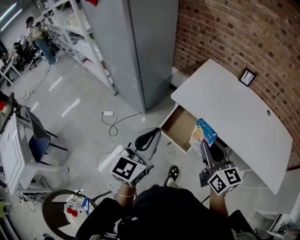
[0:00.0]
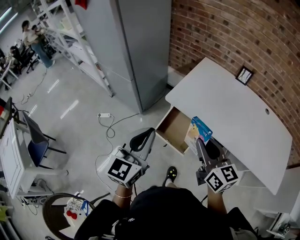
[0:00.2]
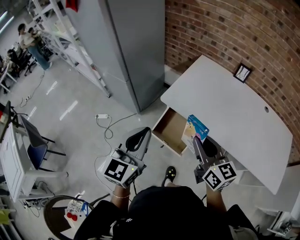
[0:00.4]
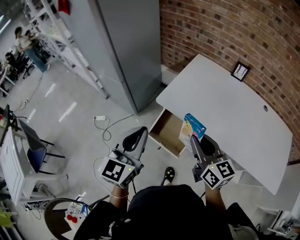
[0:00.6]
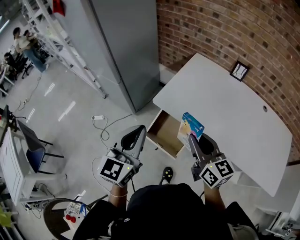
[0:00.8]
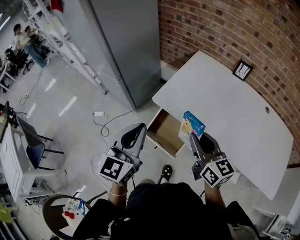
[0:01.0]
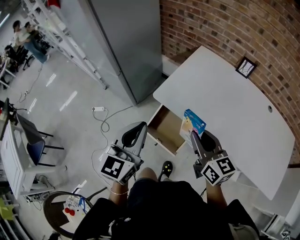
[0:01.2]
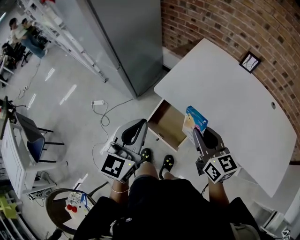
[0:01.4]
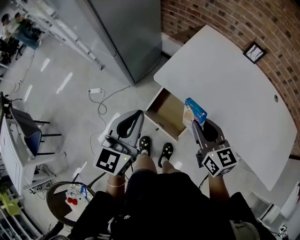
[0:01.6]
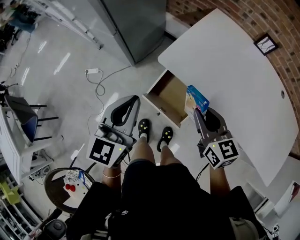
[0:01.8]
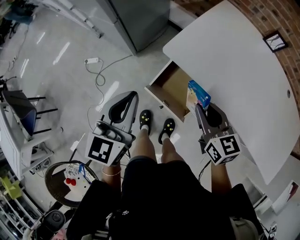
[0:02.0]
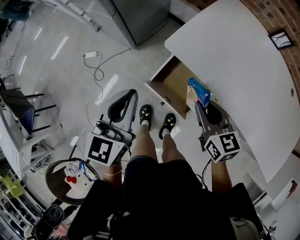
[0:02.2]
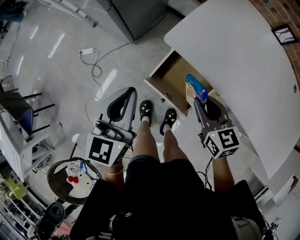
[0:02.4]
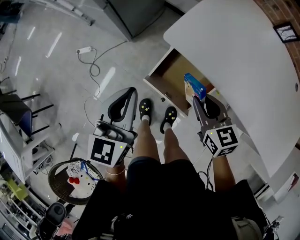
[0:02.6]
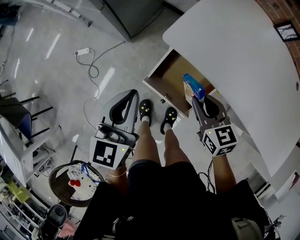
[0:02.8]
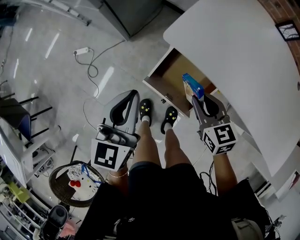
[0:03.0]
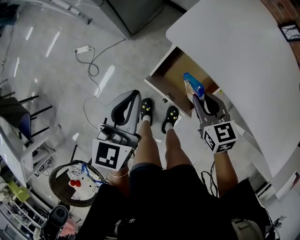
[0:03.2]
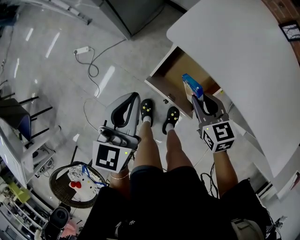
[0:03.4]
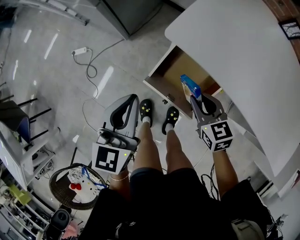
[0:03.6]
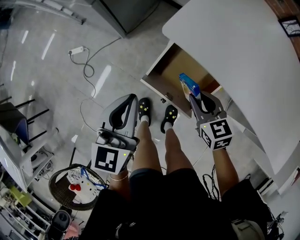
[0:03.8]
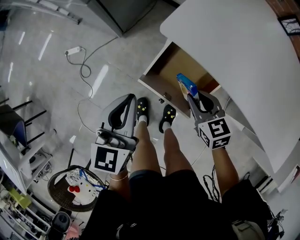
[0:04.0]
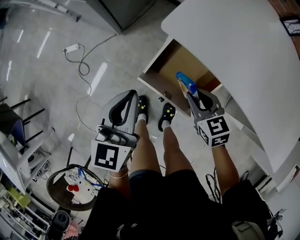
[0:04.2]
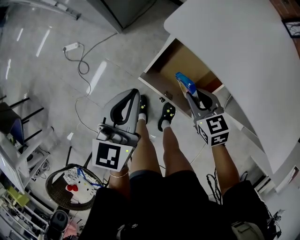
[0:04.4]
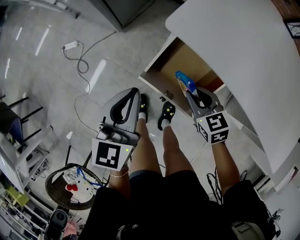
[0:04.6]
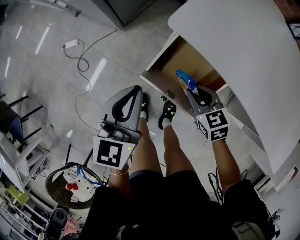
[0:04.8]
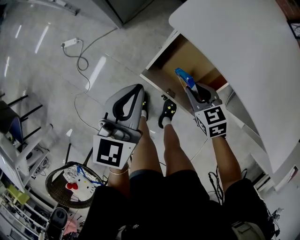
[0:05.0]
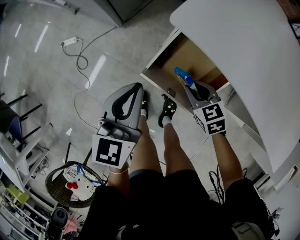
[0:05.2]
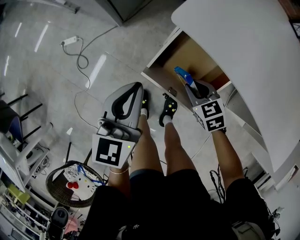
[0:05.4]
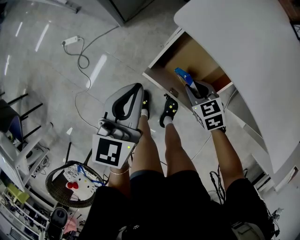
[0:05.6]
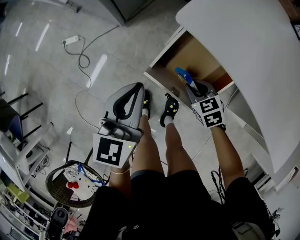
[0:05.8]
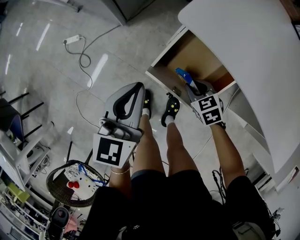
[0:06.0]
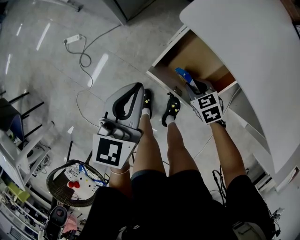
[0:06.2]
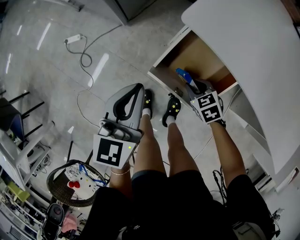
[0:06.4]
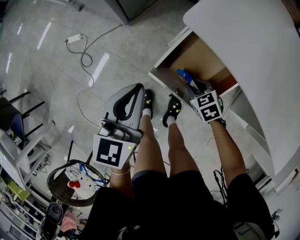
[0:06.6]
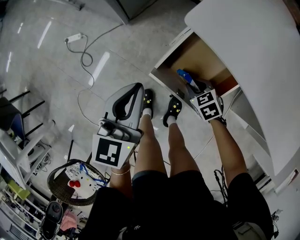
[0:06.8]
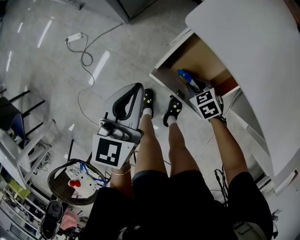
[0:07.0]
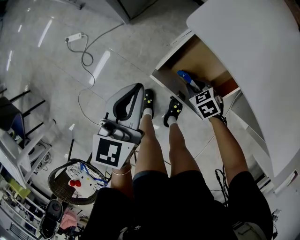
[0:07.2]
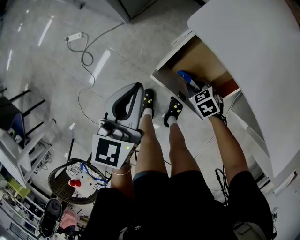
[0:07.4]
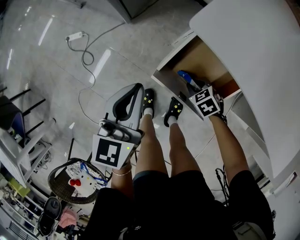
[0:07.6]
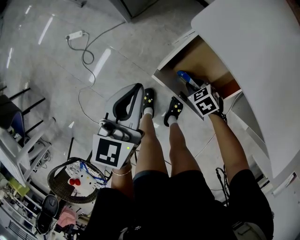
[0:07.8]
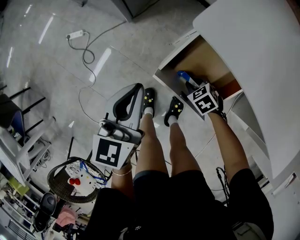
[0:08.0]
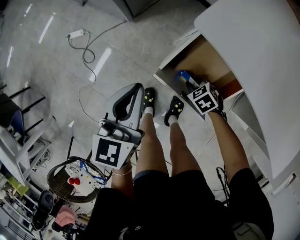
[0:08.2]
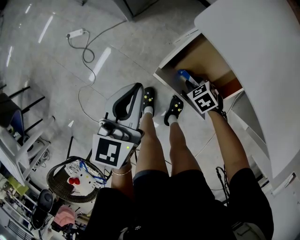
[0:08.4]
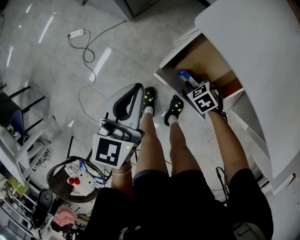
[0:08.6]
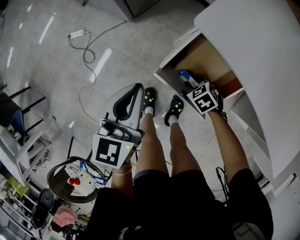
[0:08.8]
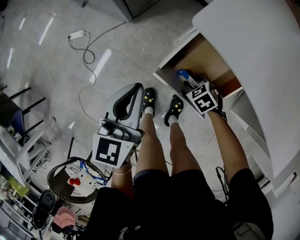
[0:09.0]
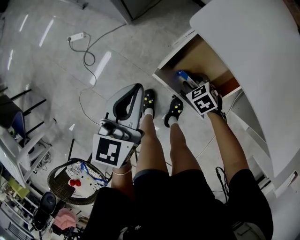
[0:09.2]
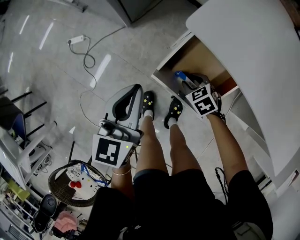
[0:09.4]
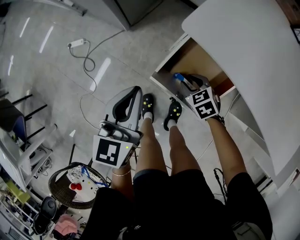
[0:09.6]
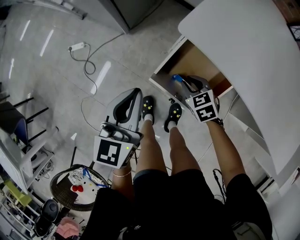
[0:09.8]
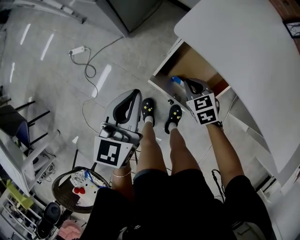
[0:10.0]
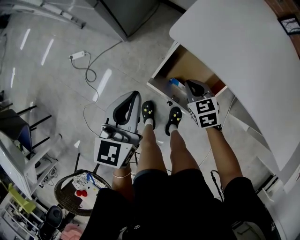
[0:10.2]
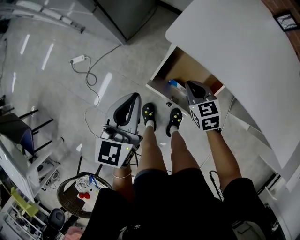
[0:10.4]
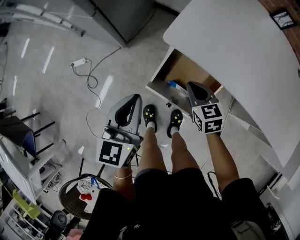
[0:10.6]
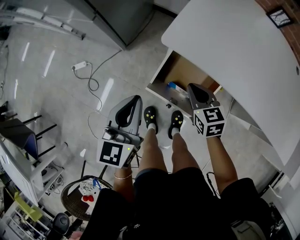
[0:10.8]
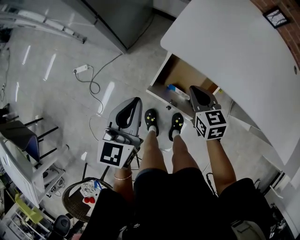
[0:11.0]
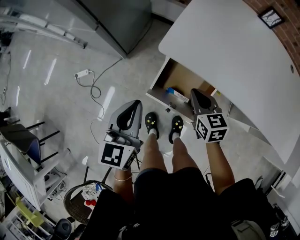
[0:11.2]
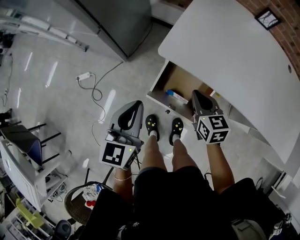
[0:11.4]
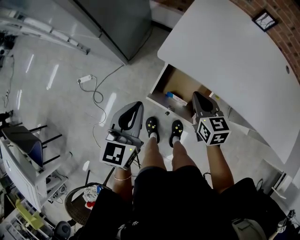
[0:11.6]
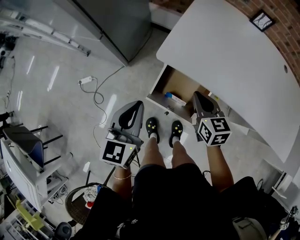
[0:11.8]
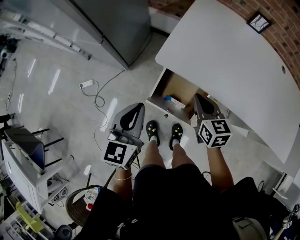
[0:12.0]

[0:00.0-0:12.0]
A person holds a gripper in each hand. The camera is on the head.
0:00.0 to 0:01.6: The grippers both shift forward and downward by approximately 15 cm.
0:01.6 to 0:03.0: Both grippers travel together downward, some 15 cm. The right gripper rotates roughly 20 degrees.
0:03.0 to 0:04.4: Both grippers move downward, some 10 cm.
0:04.4 to 0:06.0: The right gripper heads downward, covering about 10 cm.
0:06.0 to 0:07.6: The right gripper heads downward, covering about 5 cm.
0:07.6 to 0:09.0: There are only small adjustments of the grippers.
0:09.0 to 0:10.4: The left gripper moves some 5 cm; the right gripper shifts approximately 15 cm upward, turns by approximately 30 degrees, and closes its fingers.
0:10.4 to 0:12.0: The left gripper travels upward by about 10 cm; the right gripper is displaced upward by about 15 cm, and turns by approximately 30 degrees.

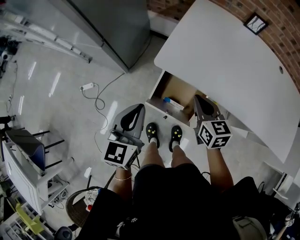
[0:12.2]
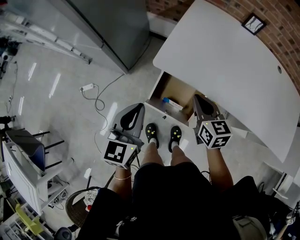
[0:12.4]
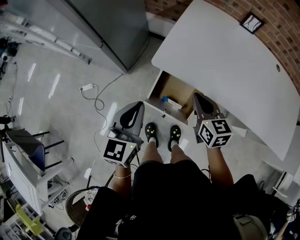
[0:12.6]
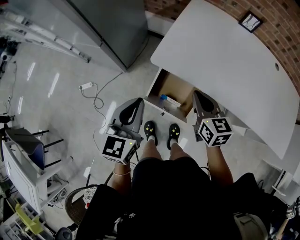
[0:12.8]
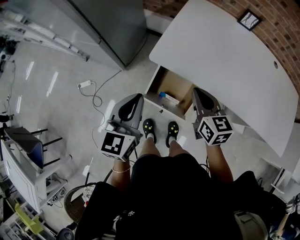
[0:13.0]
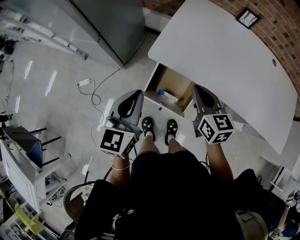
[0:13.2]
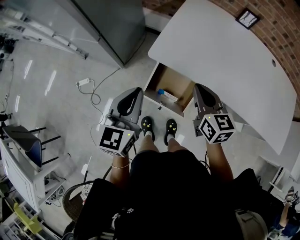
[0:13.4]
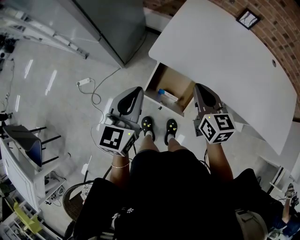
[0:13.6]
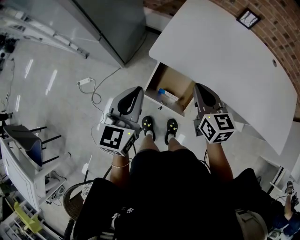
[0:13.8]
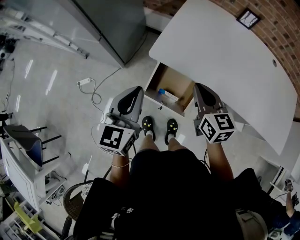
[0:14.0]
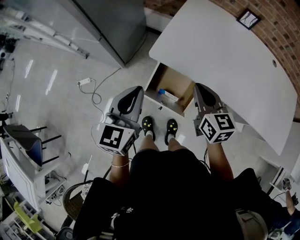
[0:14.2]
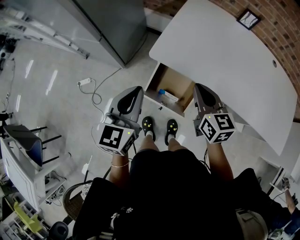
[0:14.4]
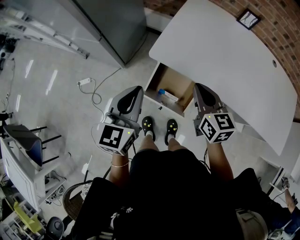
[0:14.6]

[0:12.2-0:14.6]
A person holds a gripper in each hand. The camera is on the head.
0:12.2 to 0:13.4: The right gripper travels upward by some 5 cm.
0:13.4 to 0:14.6: Both grippers stay put.

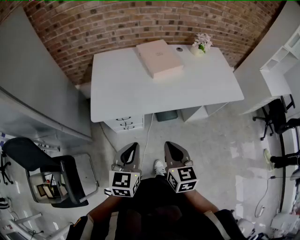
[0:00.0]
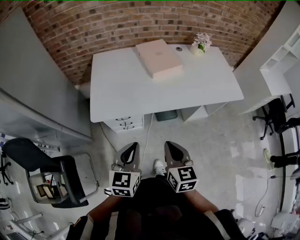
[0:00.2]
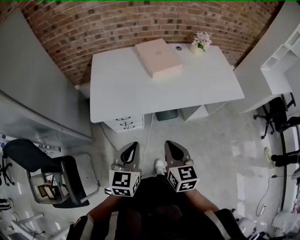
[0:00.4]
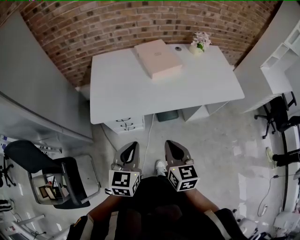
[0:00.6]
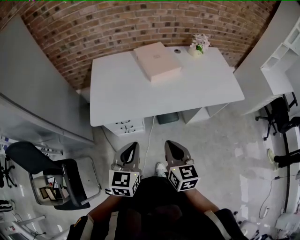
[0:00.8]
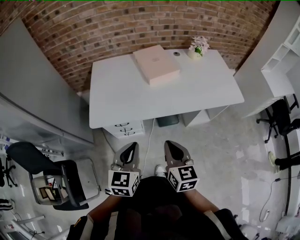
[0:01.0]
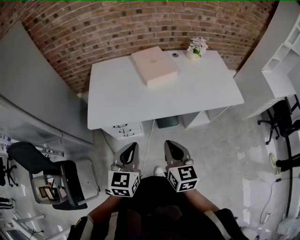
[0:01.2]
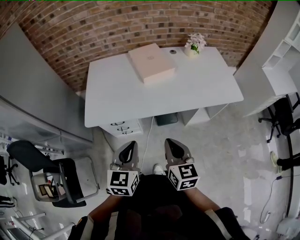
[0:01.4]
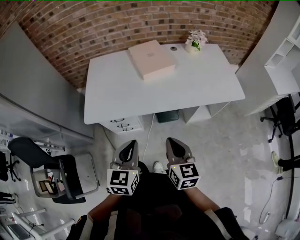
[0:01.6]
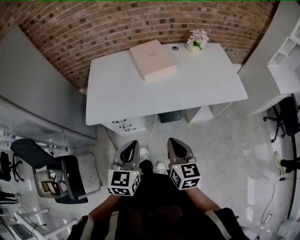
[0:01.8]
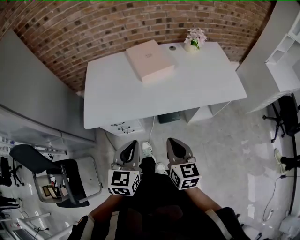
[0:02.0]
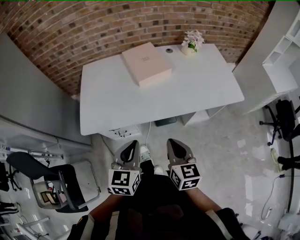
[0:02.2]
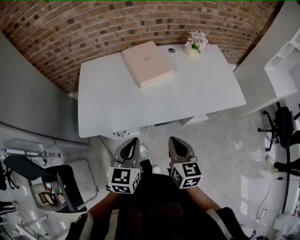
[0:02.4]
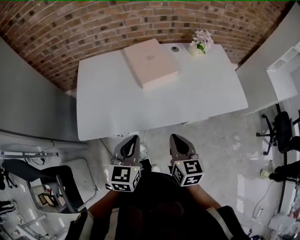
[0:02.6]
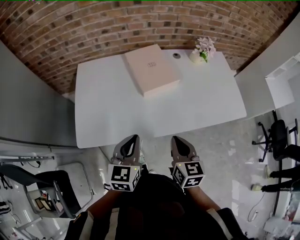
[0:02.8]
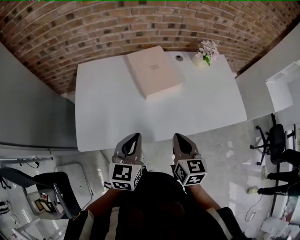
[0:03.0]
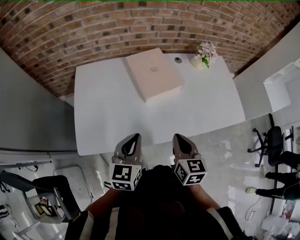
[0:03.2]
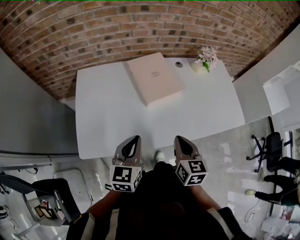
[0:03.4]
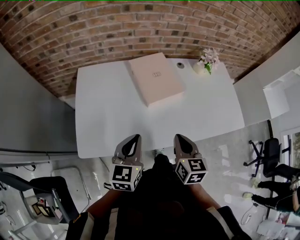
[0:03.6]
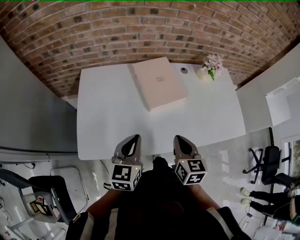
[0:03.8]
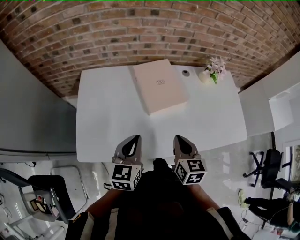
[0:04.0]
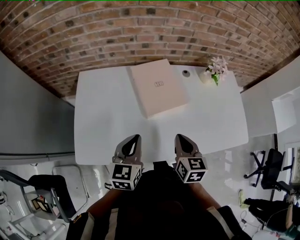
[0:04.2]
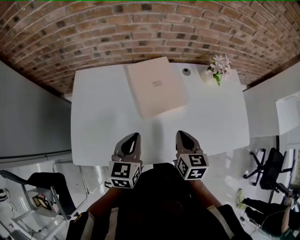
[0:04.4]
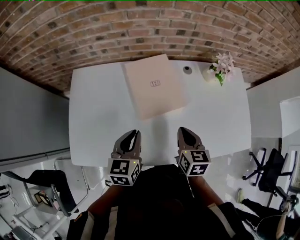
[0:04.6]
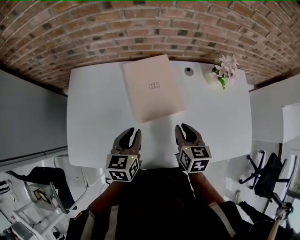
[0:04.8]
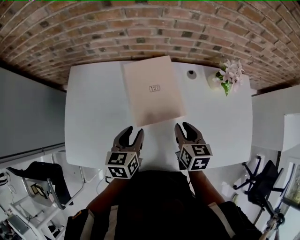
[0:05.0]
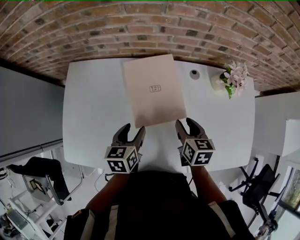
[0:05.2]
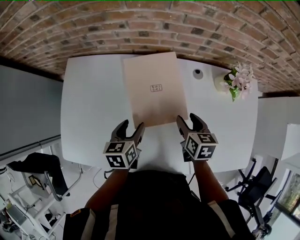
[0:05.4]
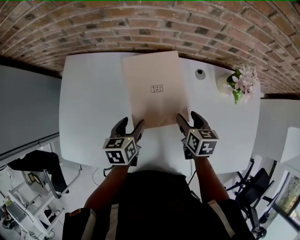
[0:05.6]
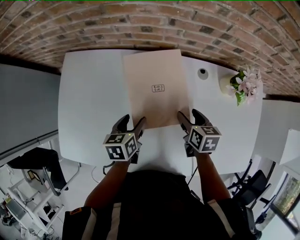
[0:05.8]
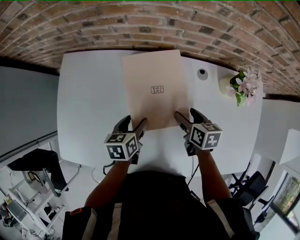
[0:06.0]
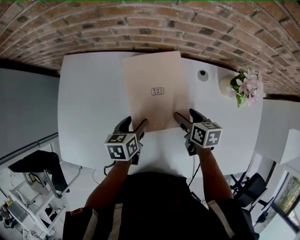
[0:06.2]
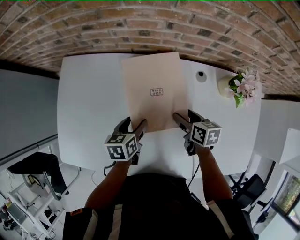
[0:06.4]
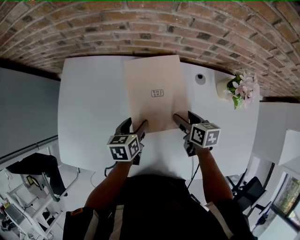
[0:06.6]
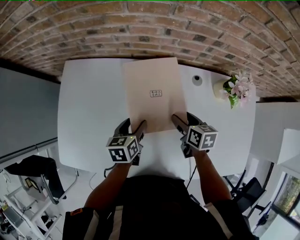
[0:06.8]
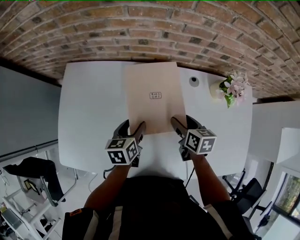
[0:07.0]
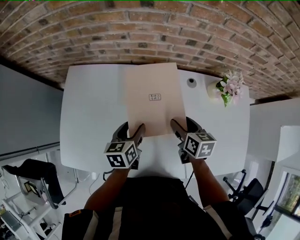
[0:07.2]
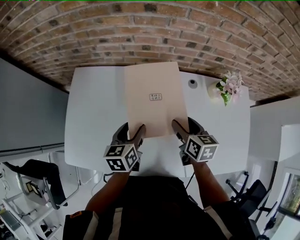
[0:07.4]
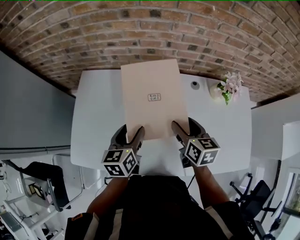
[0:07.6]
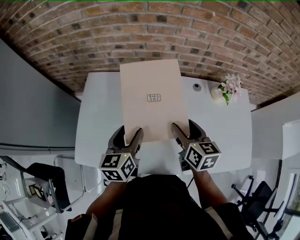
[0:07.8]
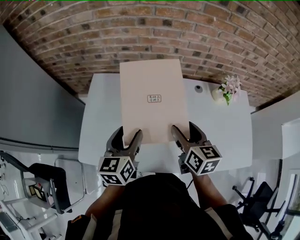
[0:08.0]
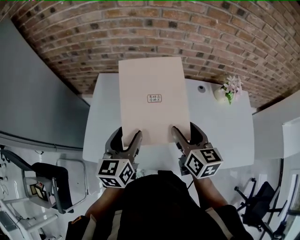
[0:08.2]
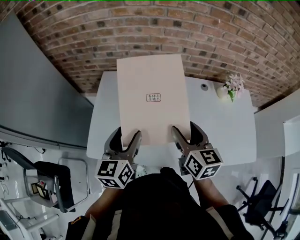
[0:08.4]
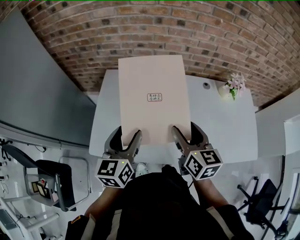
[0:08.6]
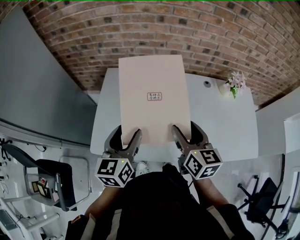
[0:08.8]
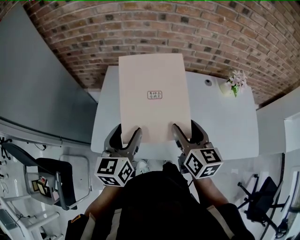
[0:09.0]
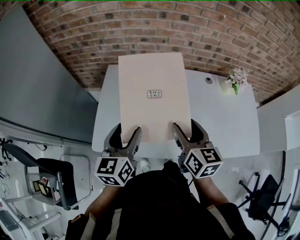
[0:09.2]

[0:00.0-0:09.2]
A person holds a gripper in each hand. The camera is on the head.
0:00.0 to 0:01.6: The grippers both shift to the right by roughly 10 cm.
0:01.6 to 0:03.0: The grippers both shift forward by approximately 20 cm.
0:03.0 to 0:04.6: The two grippers go about 20 cm forward.
0:04.6 to 0:06.2: The right gripper heads forward and downward, covering roughly 20 cm, rotates roughly 30 degrees, and opens up. Meanwhile the left gripper shifts roughly 20 cm downward and forward, changes its angle by some 30 degrees, and opens up.
0:06.2 to 0:07.6: Both grippers travel together upward, approximately 15 cm. The left gripper changes its angle by some 20 degrees. The right gripper changes its angle by roughly 20 degrees.
0:07.6 to 0:09.2: Both grippers travel together to the left, backward and upward, some 20 cm.
